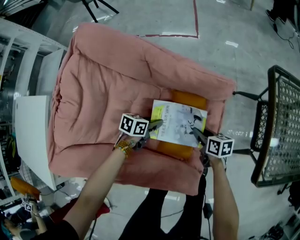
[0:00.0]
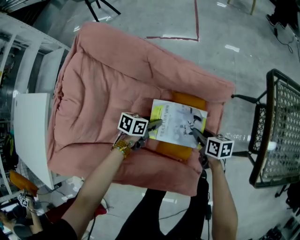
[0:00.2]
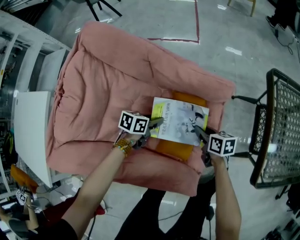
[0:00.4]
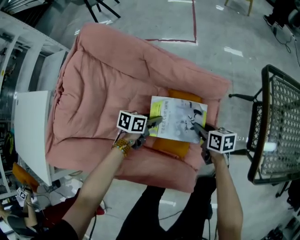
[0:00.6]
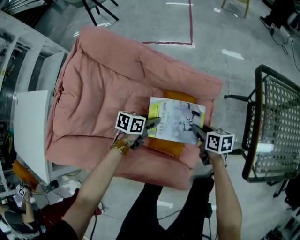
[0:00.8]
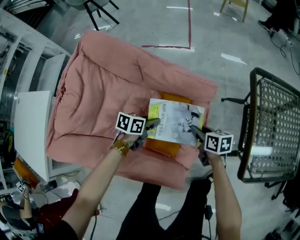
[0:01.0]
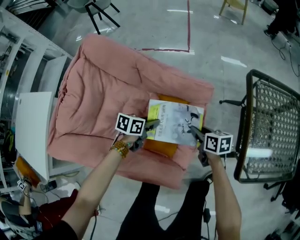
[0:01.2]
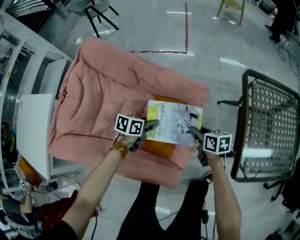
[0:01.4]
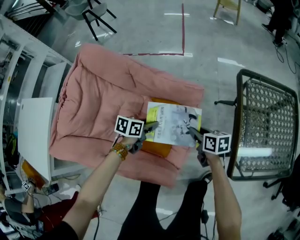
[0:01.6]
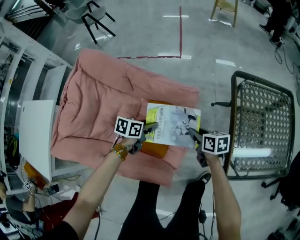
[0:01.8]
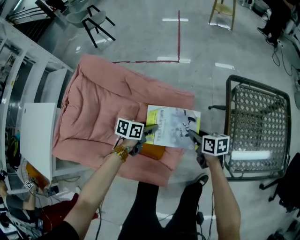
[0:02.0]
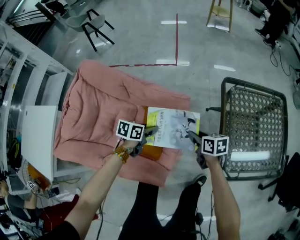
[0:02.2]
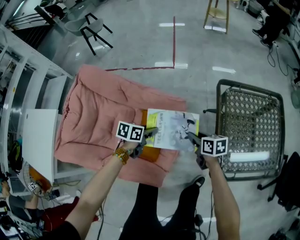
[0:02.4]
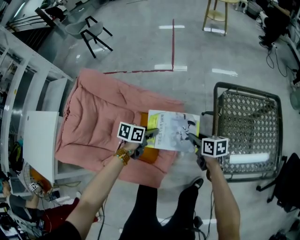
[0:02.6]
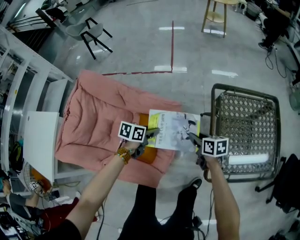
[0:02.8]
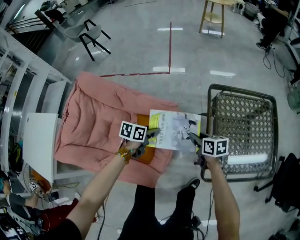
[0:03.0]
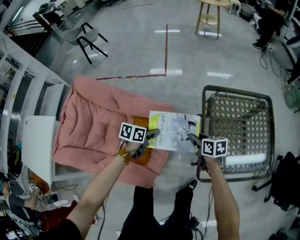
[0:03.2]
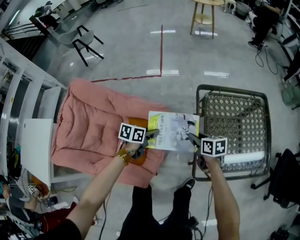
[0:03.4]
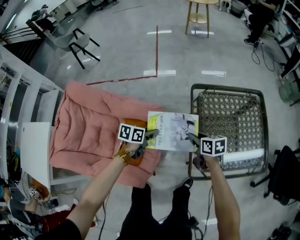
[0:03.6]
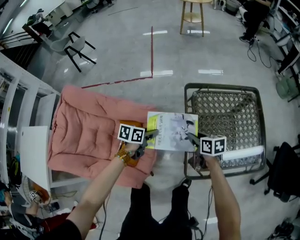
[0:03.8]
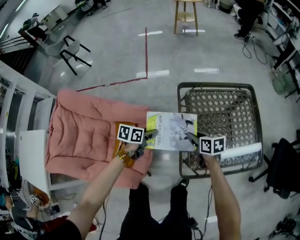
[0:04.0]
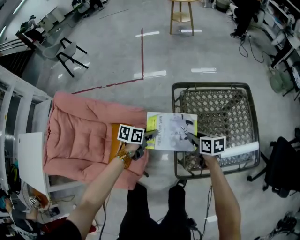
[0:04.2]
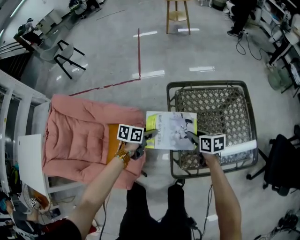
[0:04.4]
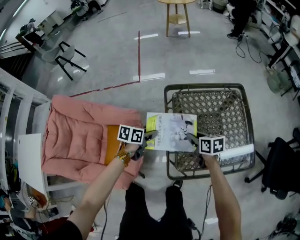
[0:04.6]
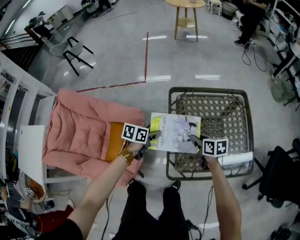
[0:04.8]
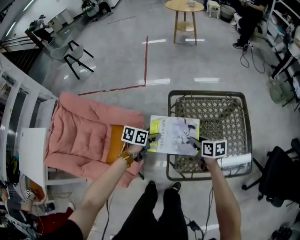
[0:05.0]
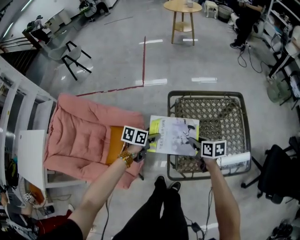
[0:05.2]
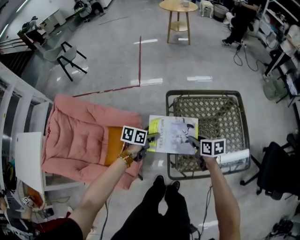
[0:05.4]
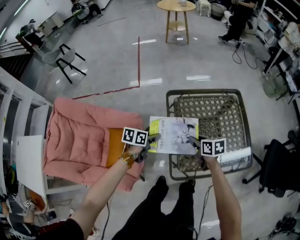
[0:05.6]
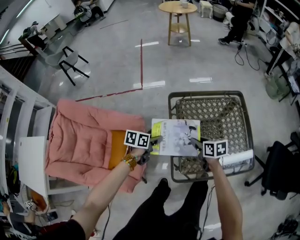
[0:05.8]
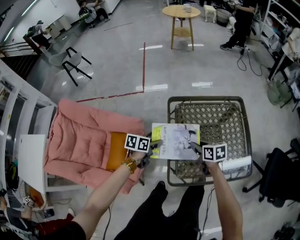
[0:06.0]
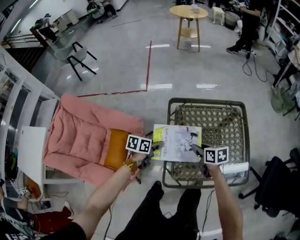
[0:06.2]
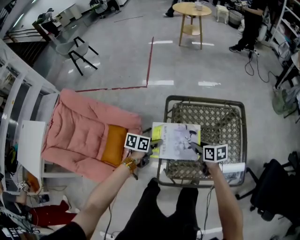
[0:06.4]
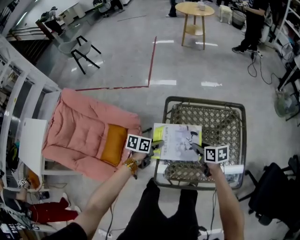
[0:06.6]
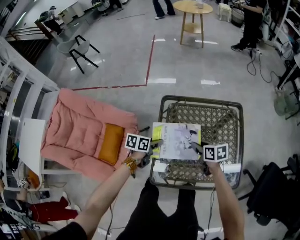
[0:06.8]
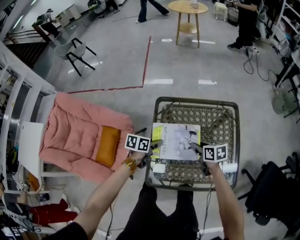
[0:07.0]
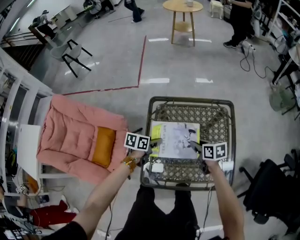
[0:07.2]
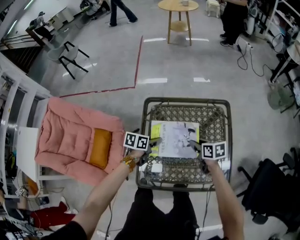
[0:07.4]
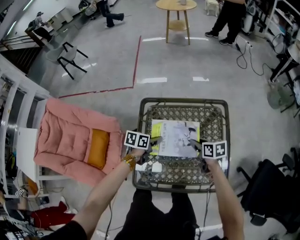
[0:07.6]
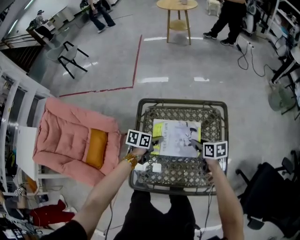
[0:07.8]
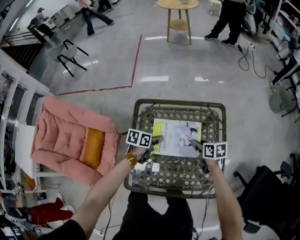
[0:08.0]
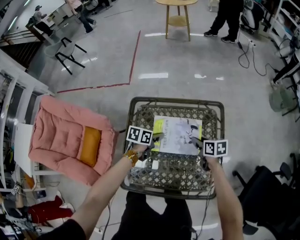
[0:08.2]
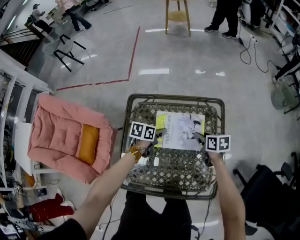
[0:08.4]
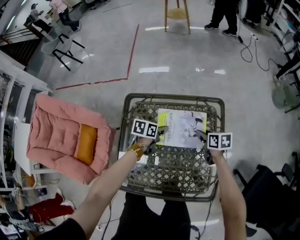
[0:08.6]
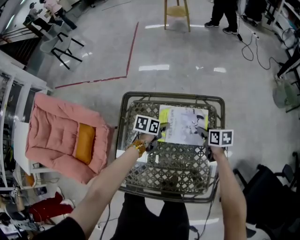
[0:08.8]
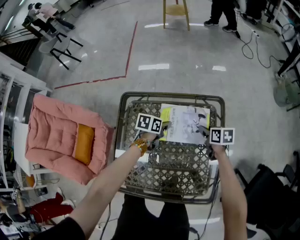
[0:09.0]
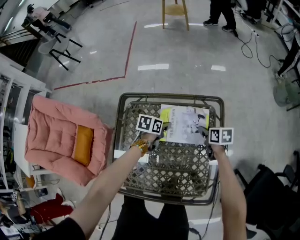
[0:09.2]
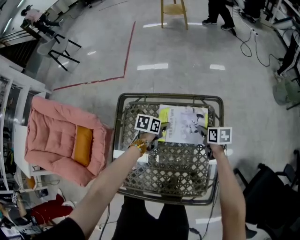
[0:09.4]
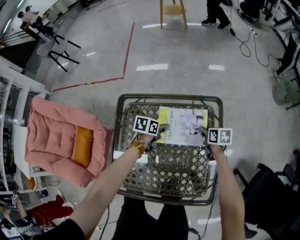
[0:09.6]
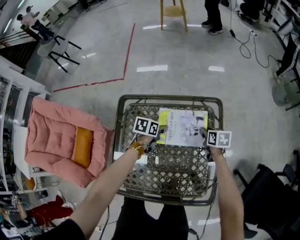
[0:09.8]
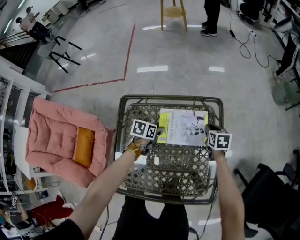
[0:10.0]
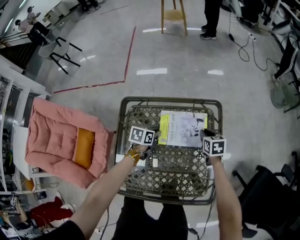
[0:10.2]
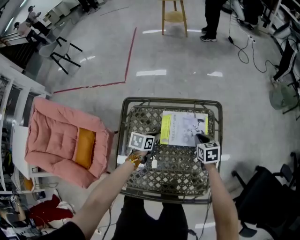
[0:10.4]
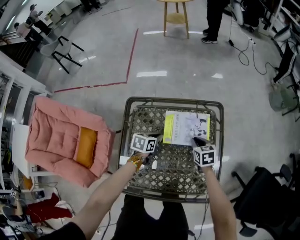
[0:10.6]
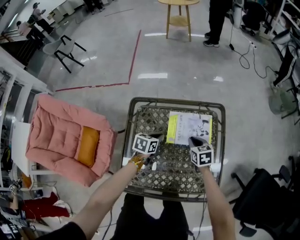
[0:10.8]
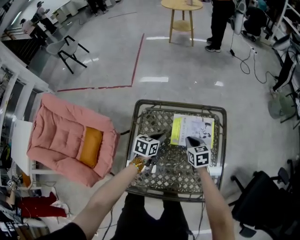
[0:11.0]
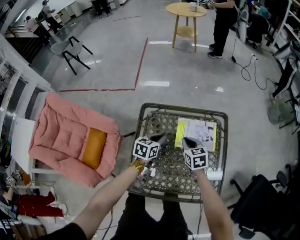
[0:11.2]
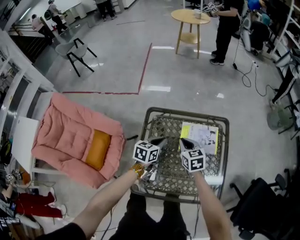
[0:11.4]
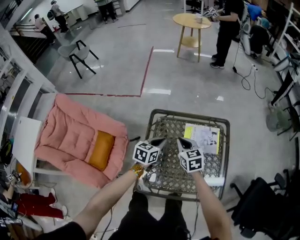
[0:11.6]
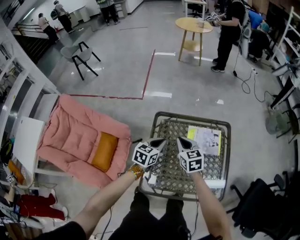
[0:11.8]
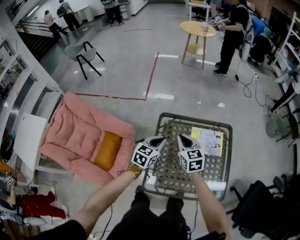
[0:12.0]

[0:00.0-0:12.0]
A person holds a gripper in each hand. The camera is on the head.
0:00.0 to 0:01.6: The two grippers go some 15 cm upward and to the right.
0:01.6 to 0:03.0: The grippers both shift to the right and upward by some 20 cm.
0:03.0 to 0:04.4: Both grippers move to the right, about 20 cm.
0:04.4 to 0:06.0: The grippers move only a little.
0:06.0 to 0:07.6: The left gripper shifts some 20 cm to the right, while the right gripper travels to the right and forward by roughly 25 cm.
0:07.6 to 0:09.0: The two grippers go some 20 cm to the right, forward and downward.
0:09.0 to 0:10.4: The right gripper moves approximately 5 cm, and rotates some 20 degrees. The left gripper is displaced backward by about 5 cm, and closes its fingers.
0:10.4 to 0:12.0: The right gripper heads to the left and upward, covering about 40 cm, and rotates approximately 30 degrees, while the left gripper goes about 30 cm upward and to the left, and changes its angle by about 30 degrees.

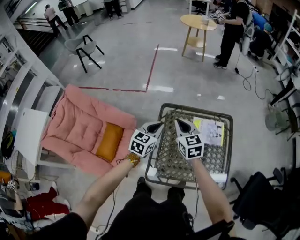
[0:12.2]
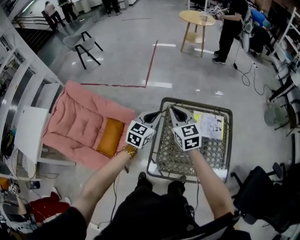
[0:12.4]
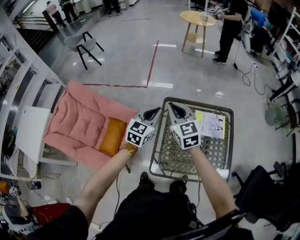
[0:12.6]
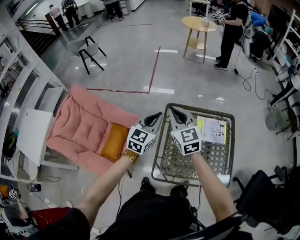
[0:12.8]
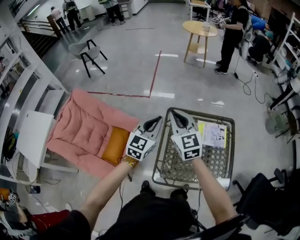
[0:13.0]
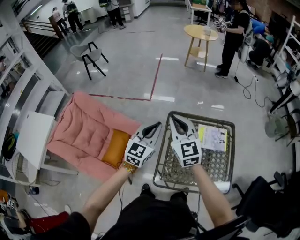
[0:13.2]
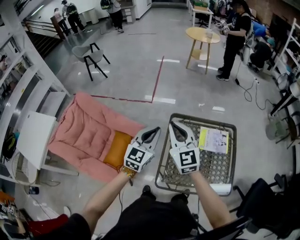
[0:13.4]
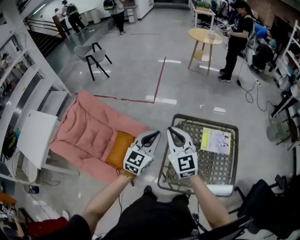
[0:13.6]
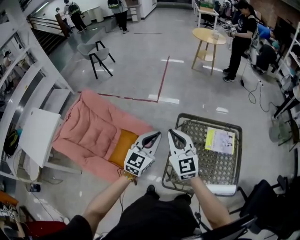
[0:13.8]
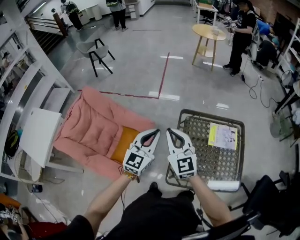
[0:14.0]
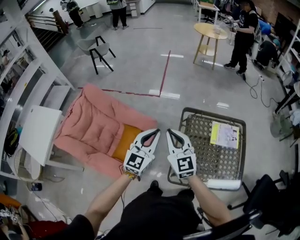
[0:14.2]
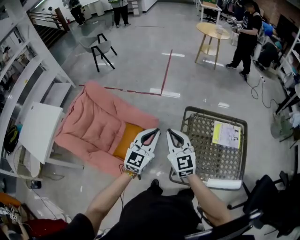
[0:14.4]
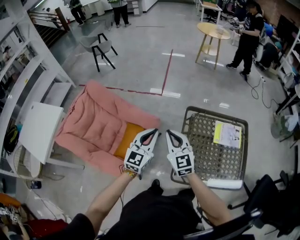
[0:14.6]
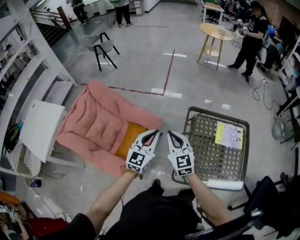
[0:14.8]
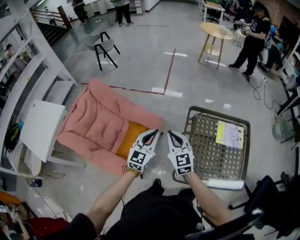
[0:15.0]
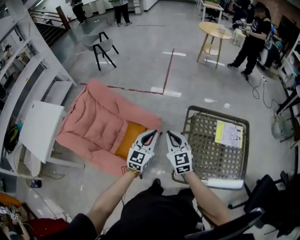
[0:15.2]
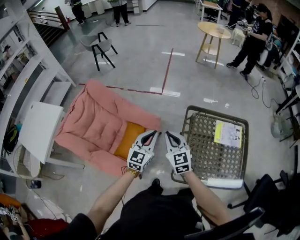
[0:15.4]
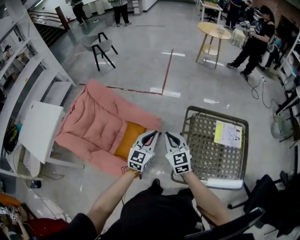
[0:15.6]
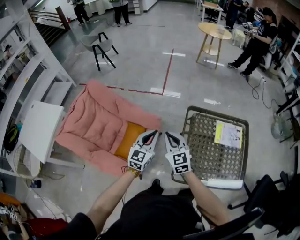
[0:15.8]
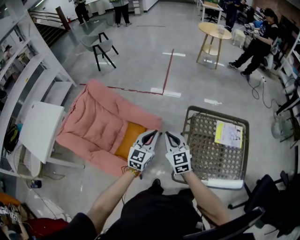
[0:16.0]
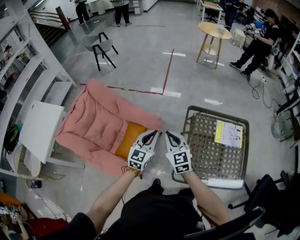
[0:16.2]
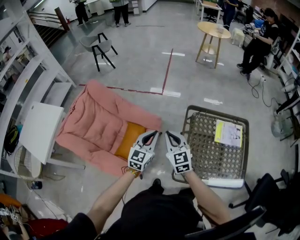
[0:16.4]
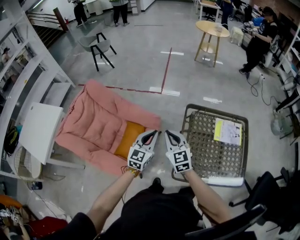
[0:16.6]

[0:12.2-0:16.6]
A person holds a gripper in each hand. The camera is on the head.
0:12.2 to 0:13.6: The left gripper moves upward, to the left and backward, about 15 cm. The right gripper moves to the left, upward and backward, roughly 20 cm, and changes its angle by roughly 20 degrees.
0:13.6 to 0:15.2: The left gripper travels to the left and downward by some 15 cm. Meanwhile the right gripper is displaced downward and to the left by roughly 15 cm.
0:15.2 to 0:16.6: The grippers make only small movements.

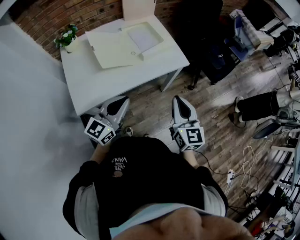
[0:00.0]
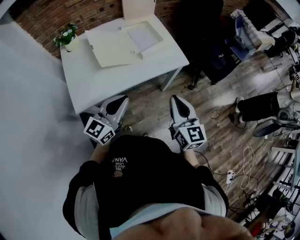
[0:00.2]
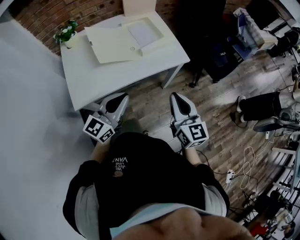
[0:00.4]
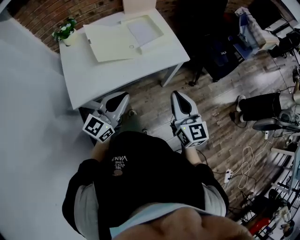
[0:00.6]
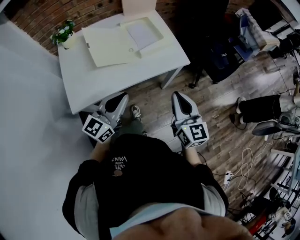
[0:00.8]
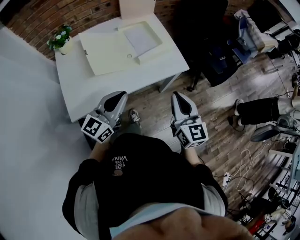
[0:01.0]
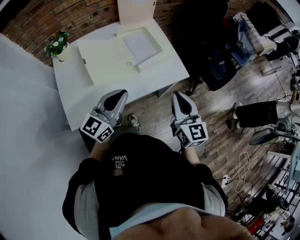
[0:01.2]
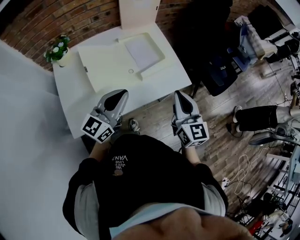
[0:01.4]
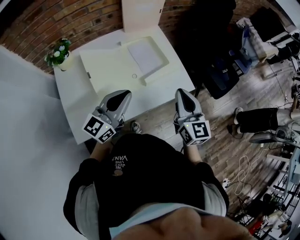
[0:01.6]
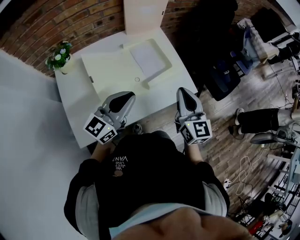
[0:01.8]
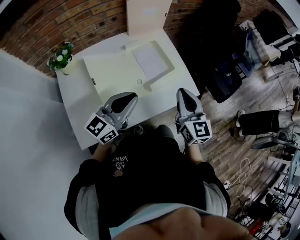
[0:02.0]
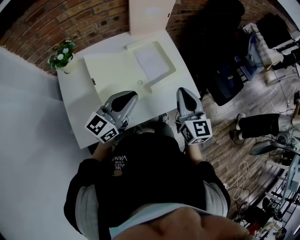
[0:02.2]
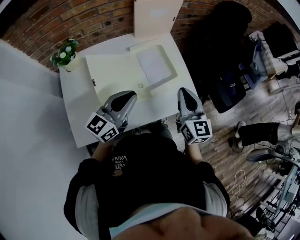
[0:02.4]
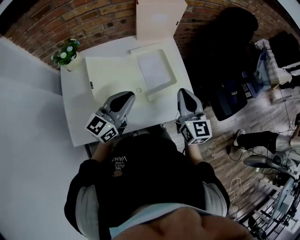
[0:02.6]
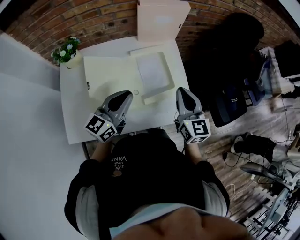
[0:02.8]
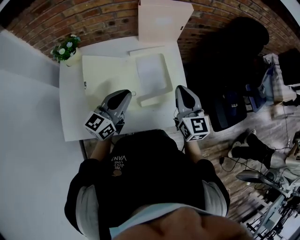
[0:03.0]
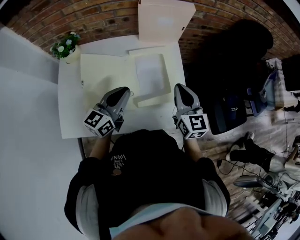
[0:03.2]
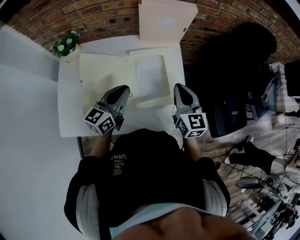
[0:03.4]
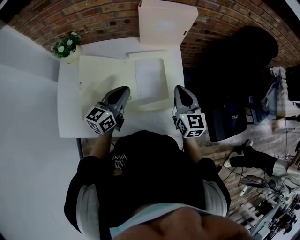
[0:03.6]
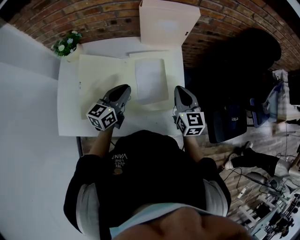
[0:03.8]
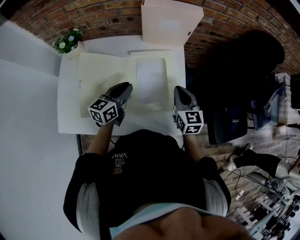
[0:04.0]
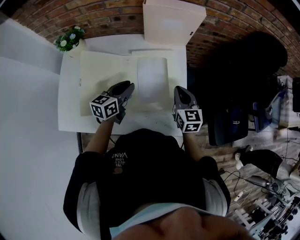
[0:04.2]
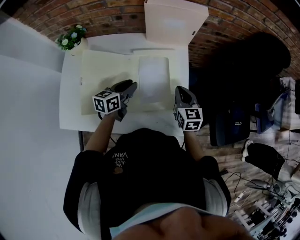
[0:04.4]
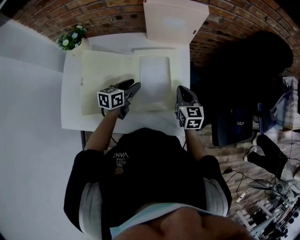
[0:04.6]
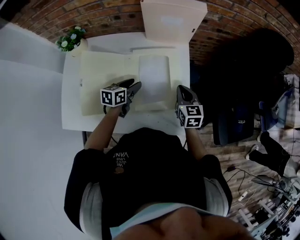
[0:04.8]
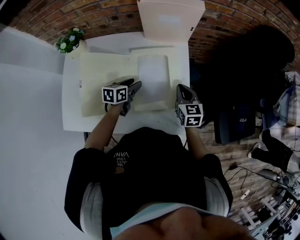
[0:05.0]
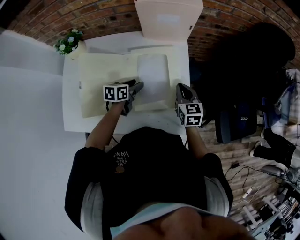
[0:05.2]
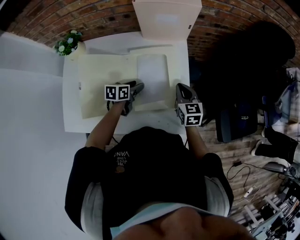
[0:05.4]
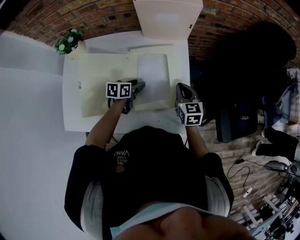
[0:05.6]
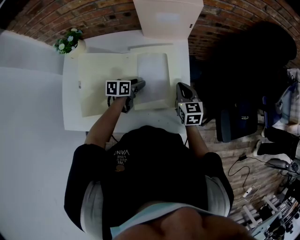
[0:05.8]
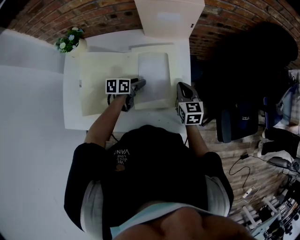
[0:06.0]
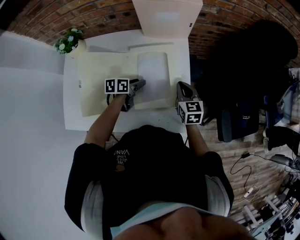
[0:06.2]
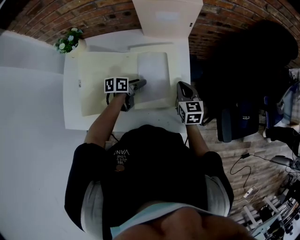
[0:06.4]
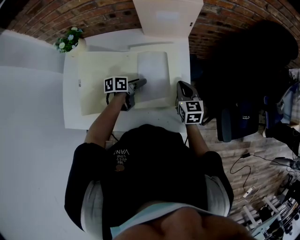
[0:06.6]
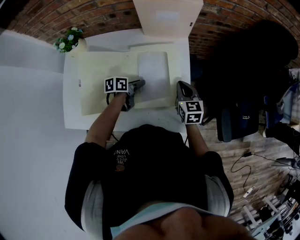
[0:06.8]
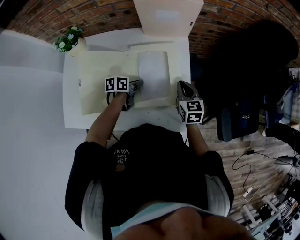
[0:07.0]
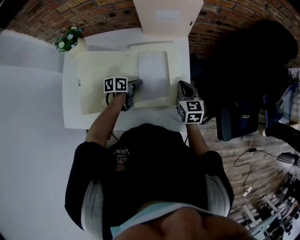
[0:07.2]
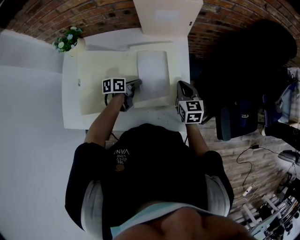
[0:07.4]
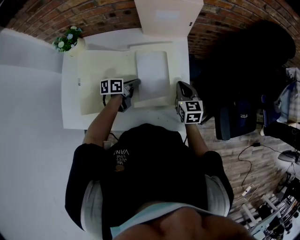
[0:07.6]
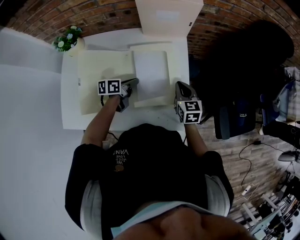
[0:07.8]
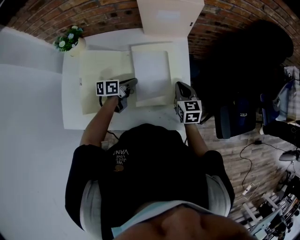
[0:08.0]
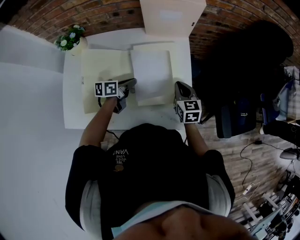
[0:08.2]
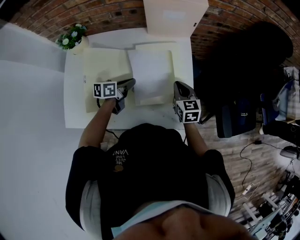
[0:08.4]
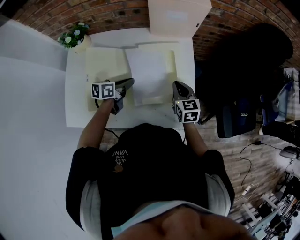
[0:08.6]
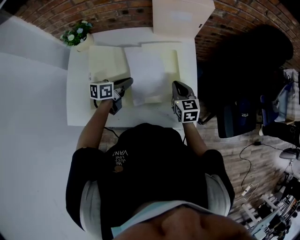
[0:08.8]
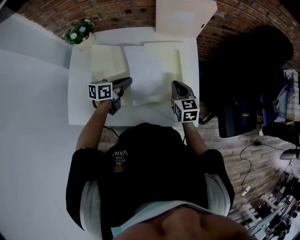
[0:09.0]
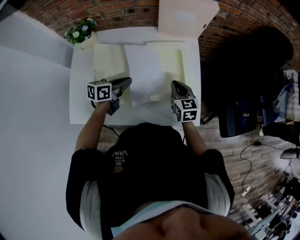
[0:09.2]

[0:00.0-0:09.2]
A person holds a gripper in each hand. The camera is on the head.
0:00.0 to 0:01.6: The two grippers go about 20 cm forward.
0:01.6 to 0:03.0: The grippers both shift forward by approximately 15 cm. The left gripper changes its angle by some 20 degrees.
0:03.0 to 0:04.6: The grippers both shift downward and forward by roughly 20 cm. The left gripper rotates some 40 degrees, and opens up; the right gripper rotates some 20 degrees.
0:04.6 to 0:06.2: The left gripper shifts some 5 cm downward.
0:06.2 to 0:07.6: The left gripper closes.
0:07.6 to 0:09.2: The right gripper shifts approximately 10 cm to the left and backward. The left gripper goes about 15 cm to the left, upward and backward.
